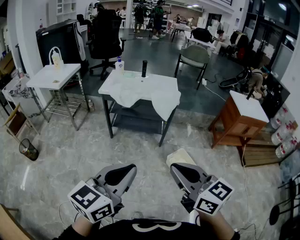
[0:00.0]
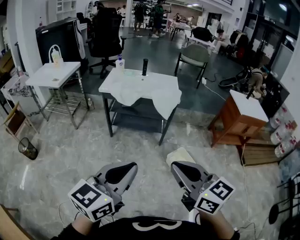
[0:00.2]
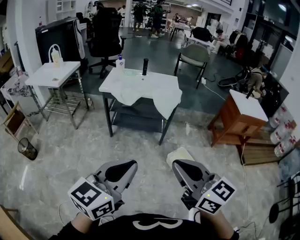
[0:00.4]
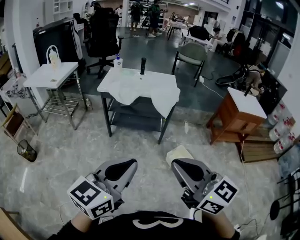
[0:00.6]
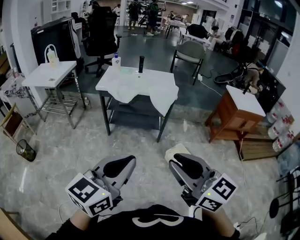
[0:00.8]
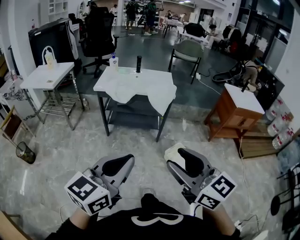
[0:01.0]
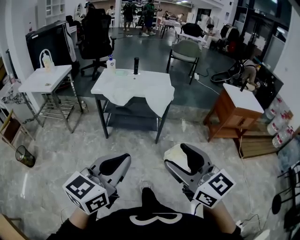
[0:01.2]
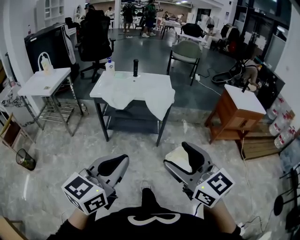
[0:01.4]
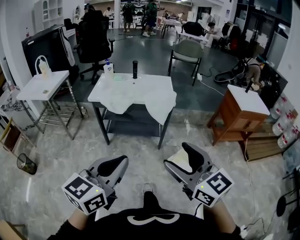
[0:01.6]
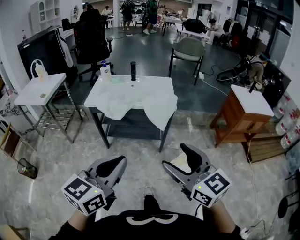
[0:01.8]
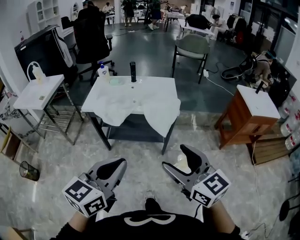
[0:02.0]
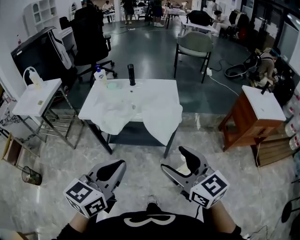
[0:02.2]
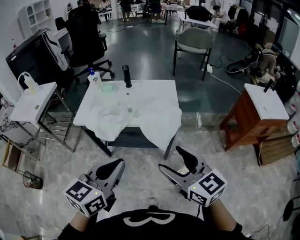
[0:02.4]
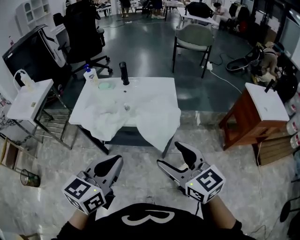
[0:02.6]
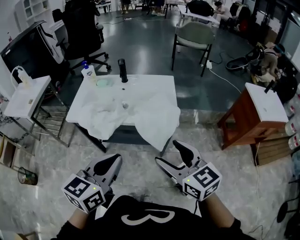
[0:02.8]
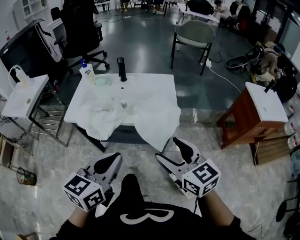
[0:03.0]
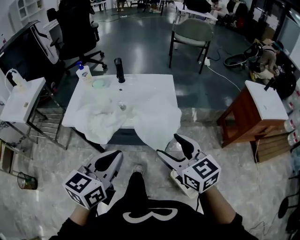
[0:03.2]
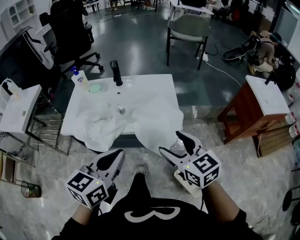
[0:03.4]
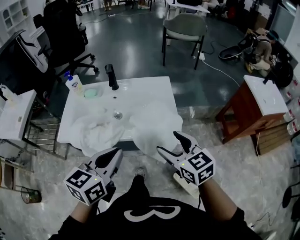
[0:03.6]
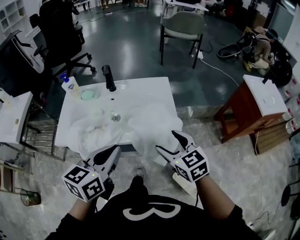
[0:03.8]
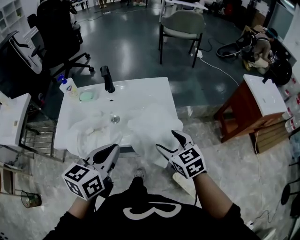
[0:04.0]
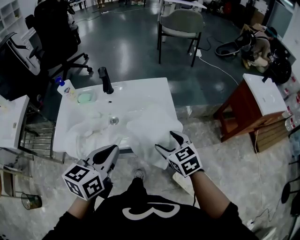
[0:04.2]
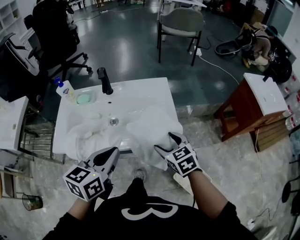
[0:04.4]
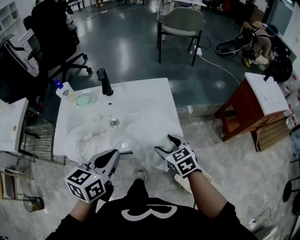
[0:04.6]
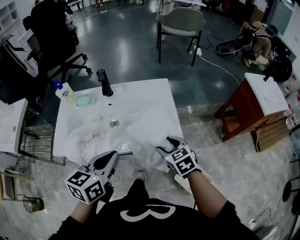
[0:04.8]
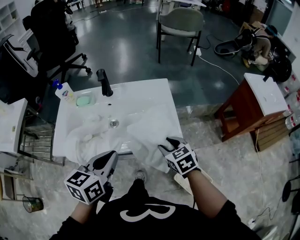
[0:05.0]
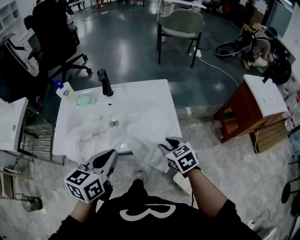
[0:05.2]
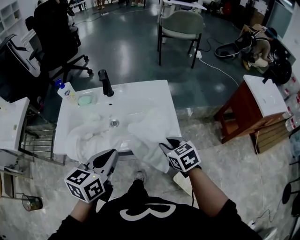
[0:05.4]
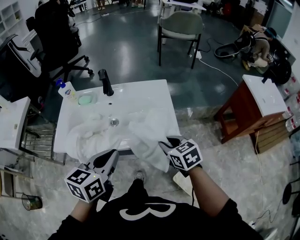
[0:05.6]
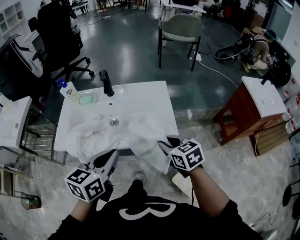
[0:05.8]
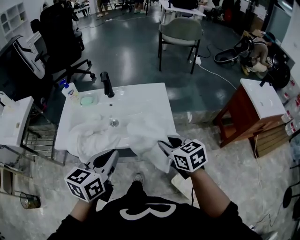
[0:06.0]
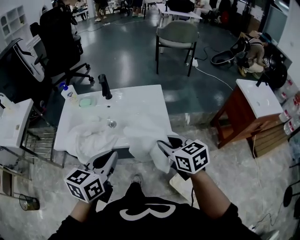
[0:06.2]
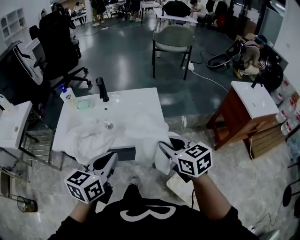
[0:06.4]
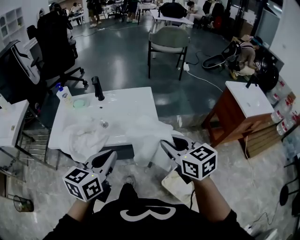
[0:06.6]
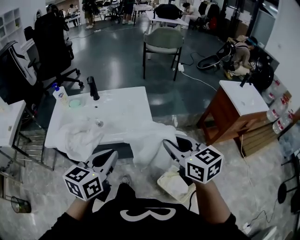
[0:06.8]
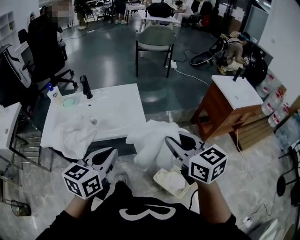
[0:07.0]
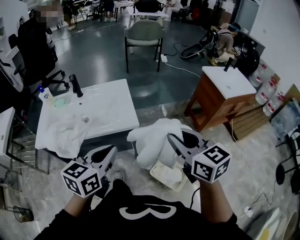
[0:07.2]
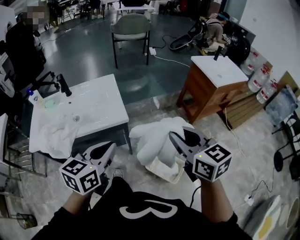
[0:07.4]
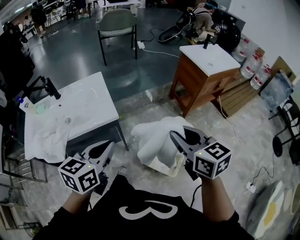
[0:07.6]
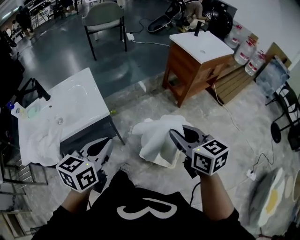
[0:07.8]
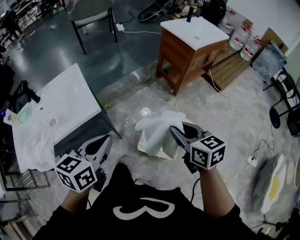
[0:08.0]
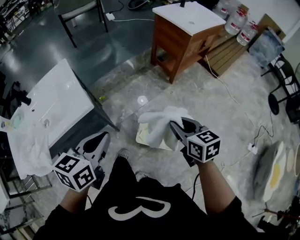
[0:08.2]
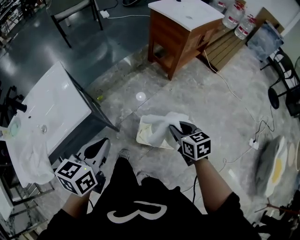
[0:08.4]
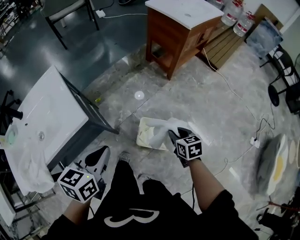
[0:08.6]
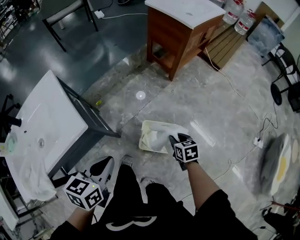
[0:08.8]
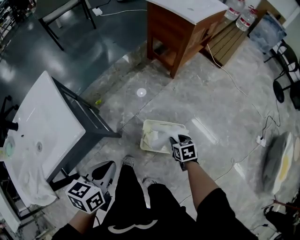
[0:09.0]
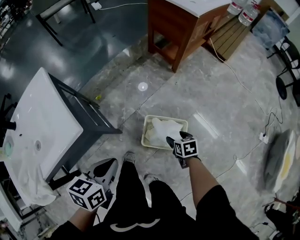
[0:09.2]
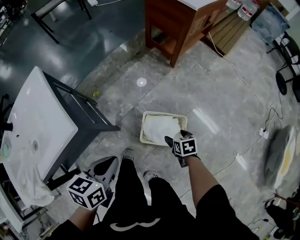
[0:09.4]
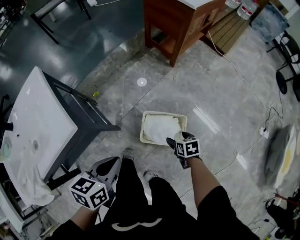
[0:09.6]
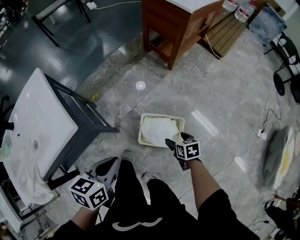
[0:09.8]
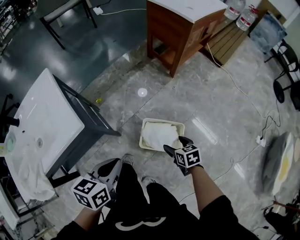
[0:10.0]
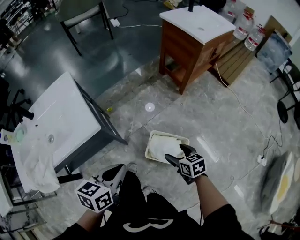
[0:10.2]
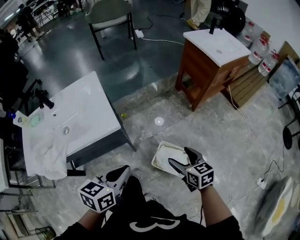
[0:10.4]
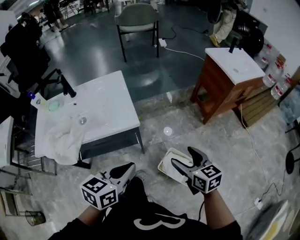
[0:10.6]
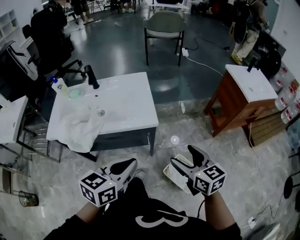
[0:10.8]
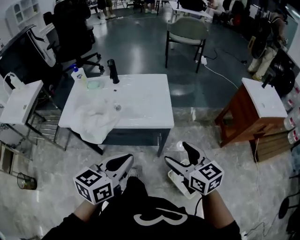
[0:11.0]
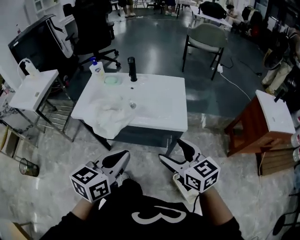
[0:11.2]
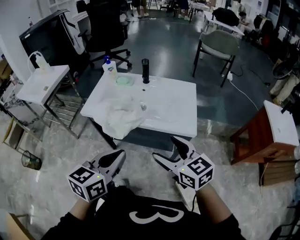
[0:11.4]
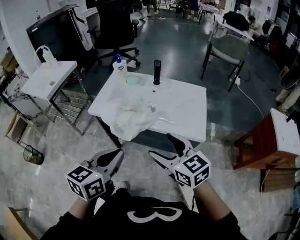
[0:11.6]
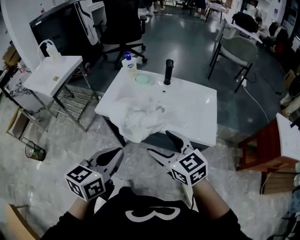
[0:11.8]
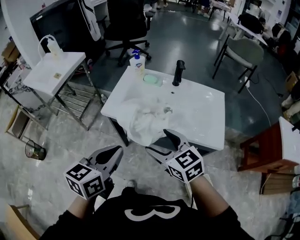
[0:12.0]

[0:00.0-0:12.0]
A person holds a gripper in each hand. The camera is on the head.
0:00.0 to 0:01.6: Both grippers move forward, approximately 10 cm. The right gripper opens its fingers.
0:01.6 to 0:03.0: Both grippers move forward, approximately 40 cm.
0:03.0 to 0:04.4: The right gripper shifts about 25 cm forward and downward, and changes its angle by approximately 30 degrees; the left gripper goes some 20 cm forward.
0:04.4 to 0:06.0: The right gripper moves upward, some 5 cm, and closes its fingers.
0:06.0 to 0:07.6: The left gripper changes place by roughly 25 cm, and changes its angle by approximately 20 degrees. Meanwhile the right gripper moves approximately 35 cm, and swivels roughly 30 degrees.
0:07.6 to 0:09.0: The right gripper is displaced downward by about 50 cm, and points its fingers roughly 40 degrees further downward. The left gripper shifts some 25 cm downward and forward, and rotates roughly 30 degrees.
0:09.0 to 0:10.4: The left gripper shifts roughly 10 cm upward and backward. Meanwhile the right gripper heads upward, covering approximately 25 cm, changes its angle by roughly 30 degrees, and opens its fingers.
0:10.4 to 0:12.0: The two grippers travel together, about 50 cm. The right gripper rotates some 60 degrees. The left gripper changes its angle by roughly 50 degrees.

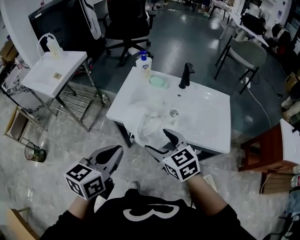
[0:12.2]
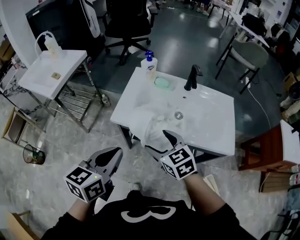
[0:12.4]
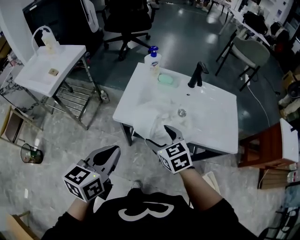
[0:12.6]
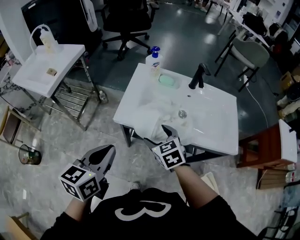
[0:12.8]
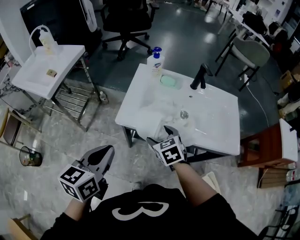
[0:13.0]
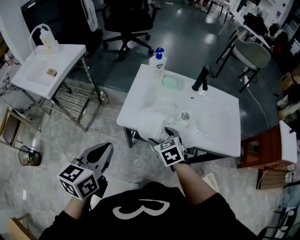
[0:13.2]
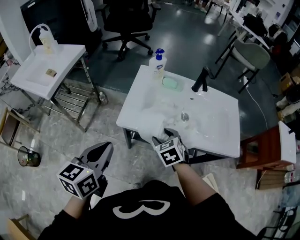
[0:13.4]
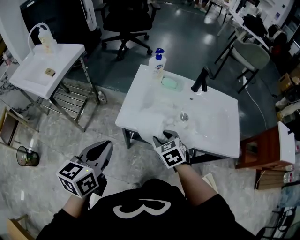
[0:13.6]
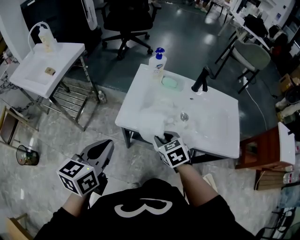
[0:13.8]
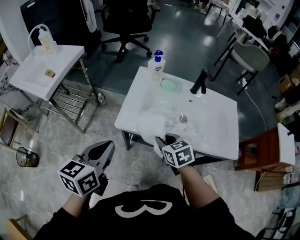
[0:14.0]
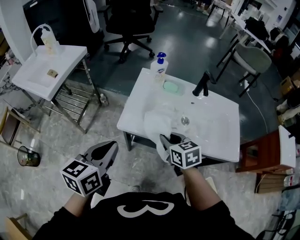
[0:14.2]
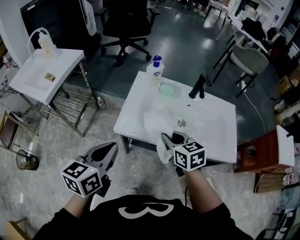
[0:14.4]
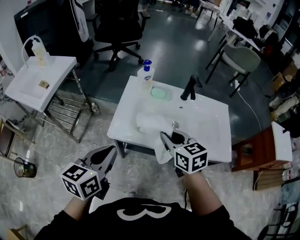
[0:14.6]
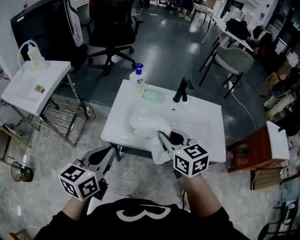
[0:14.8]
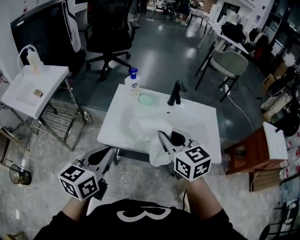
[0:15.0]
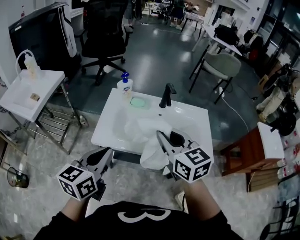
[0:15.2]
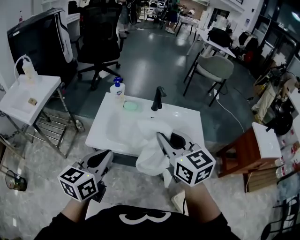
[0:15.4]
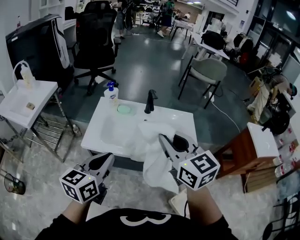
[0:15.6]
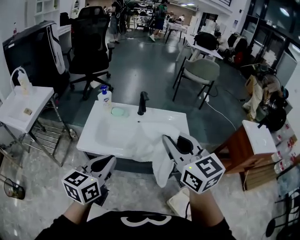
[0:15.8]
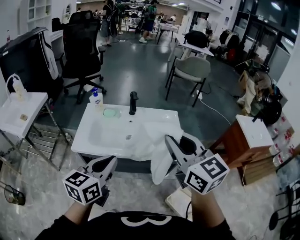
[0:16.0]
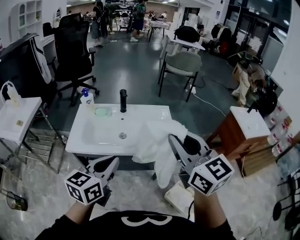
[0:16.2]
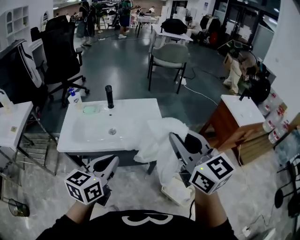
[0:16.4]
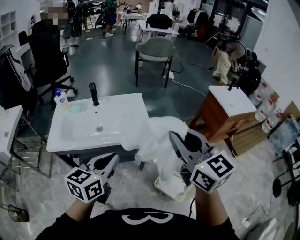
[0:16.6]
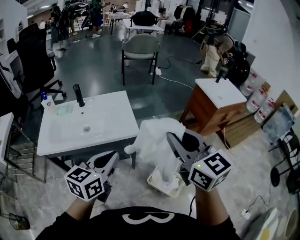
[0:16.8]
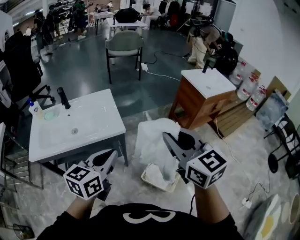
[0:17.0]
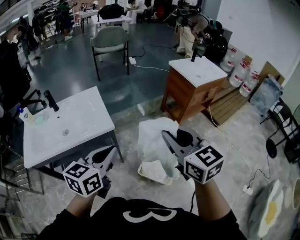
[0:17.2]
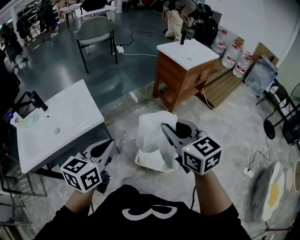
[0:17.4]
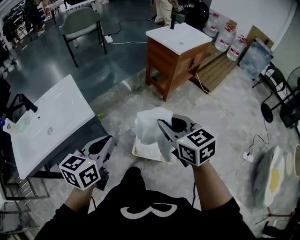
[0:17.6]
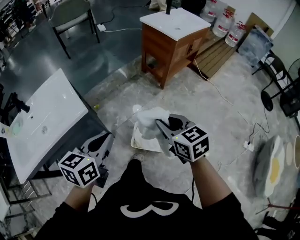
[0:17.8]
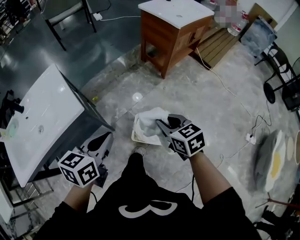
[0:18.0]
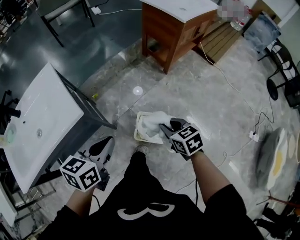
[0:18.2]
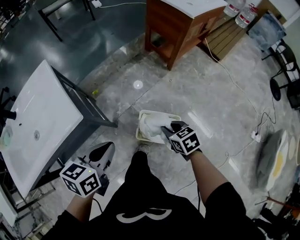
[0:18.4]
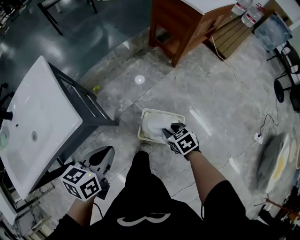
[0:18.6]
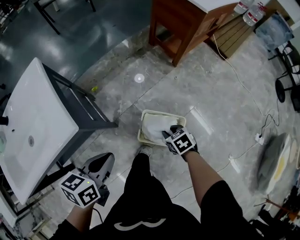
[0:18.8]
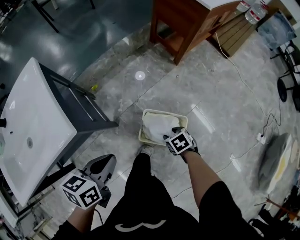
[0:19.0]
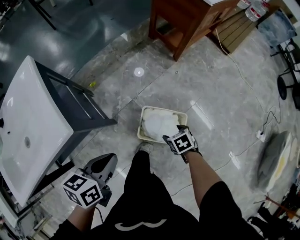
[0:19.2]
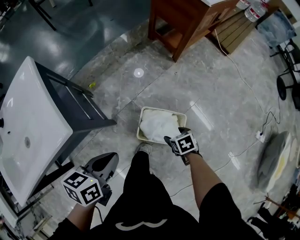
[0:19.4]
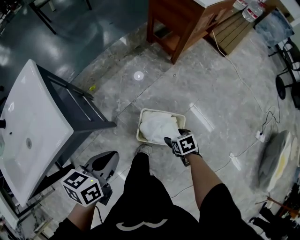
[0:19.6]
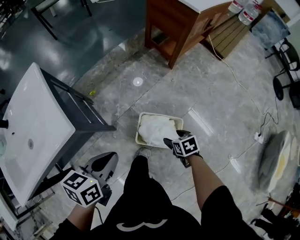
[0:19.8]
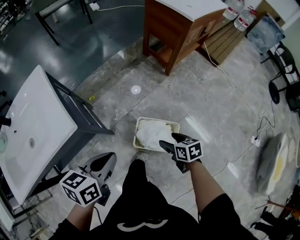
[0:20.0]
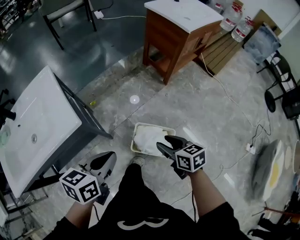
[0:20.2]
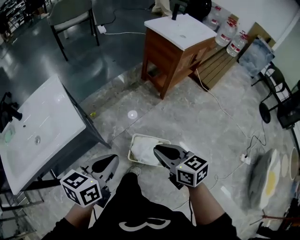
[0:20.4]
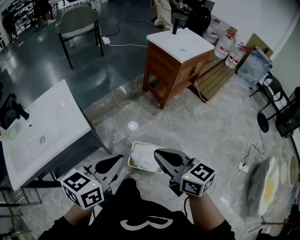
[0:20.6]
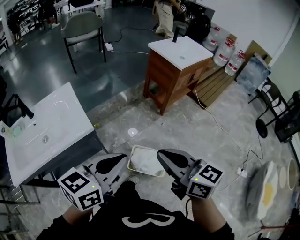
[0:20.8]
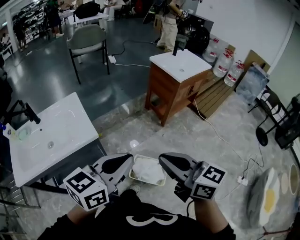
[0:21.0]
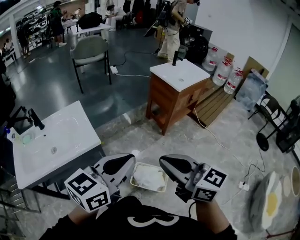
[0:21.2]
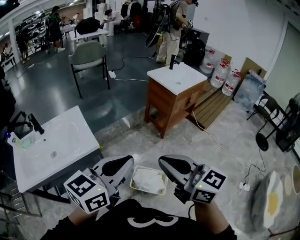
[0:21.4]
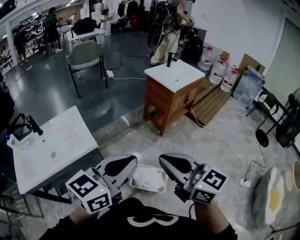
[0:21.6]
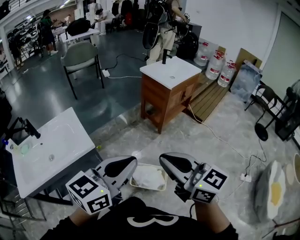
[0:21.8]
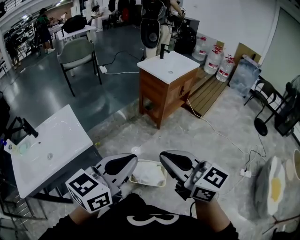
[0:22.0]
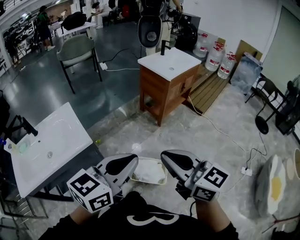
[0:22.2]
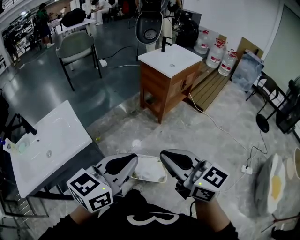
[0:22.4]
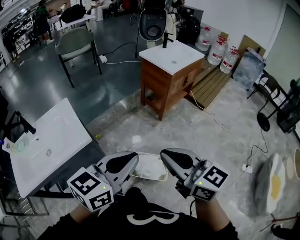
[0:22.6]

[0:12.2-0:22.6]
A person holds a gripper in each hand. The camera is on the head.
0:12.2 to 0:13.6: The right gripper goes approximately 20 cm downward, forward and to the left, rotates some 30 degrees, and closes its fingers. Meanwhile the left gripper goes about 15 cm to the left and forward.
0:13.6 to 0:15.2: The left gripper moves to the right and upward, roughly 15 cm. Meanwhile the right gripper travels upward and to the right by approximately 25 cm, and tilts its fingers roughly 30 degrees upward.
0:15.2 to 0:16.6: The right gripper travels to the right and backward by about 40 cm, and swivels some 20 degrees. The left gripper goes some 35 cm to the right, and changes its angle by approximately 20 degrees.
0:16.6 to 0:18.2: The left gripper shifts by about 35 cm, and rotates some 40 degrees; the right gripper travels downward by about 40 cm, and tilts its fingers approximately 40 degrees downward.
0:18.2 to 0:19.6: The left gripper heads downward, covering about 10 cm. The right gripper goes about 25 cm downward, turns by about 30 degrees, and opens.
0:19.6 to 0:21.2: The left gripper goes roughly 40 cm upward, and points its fingers about 30 degrees further upward; the right gripper goes roughly 60 cm upward, points its fingers roughly 70 degrees further upward, and closes its fingers.
0:21.2 to 0:22.6: The right gripper ends up about 5 cm from where it was. The left gripper moves to the right, about 5 cm.

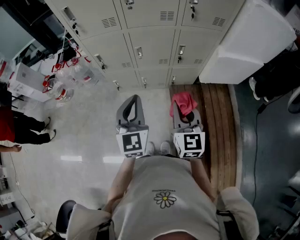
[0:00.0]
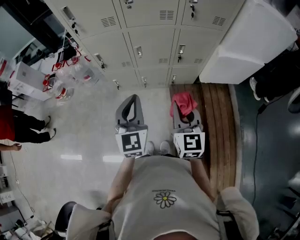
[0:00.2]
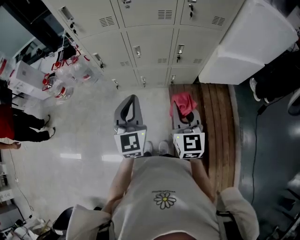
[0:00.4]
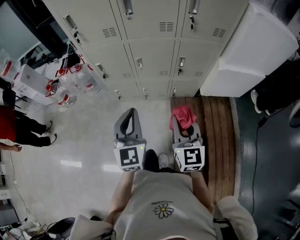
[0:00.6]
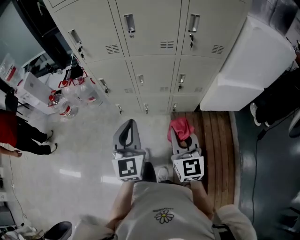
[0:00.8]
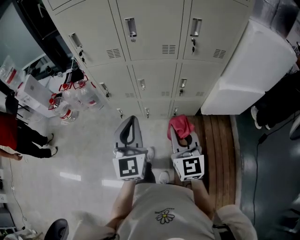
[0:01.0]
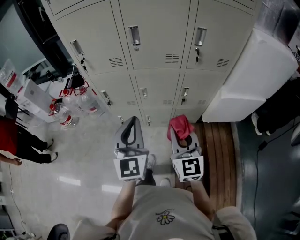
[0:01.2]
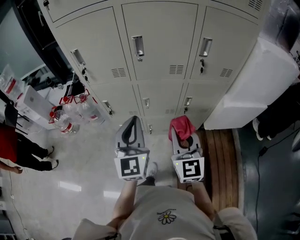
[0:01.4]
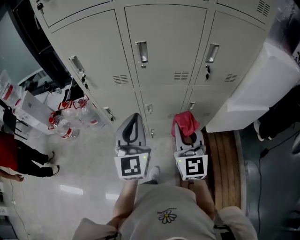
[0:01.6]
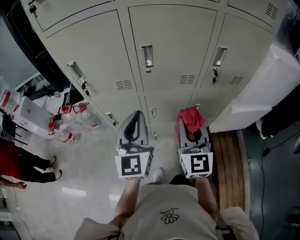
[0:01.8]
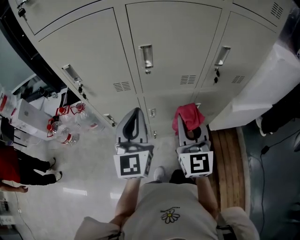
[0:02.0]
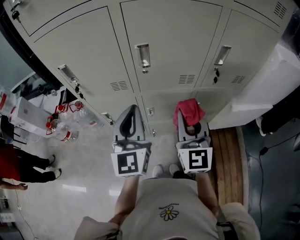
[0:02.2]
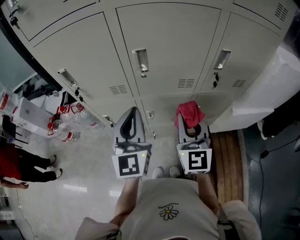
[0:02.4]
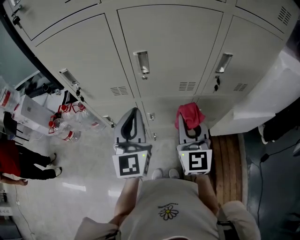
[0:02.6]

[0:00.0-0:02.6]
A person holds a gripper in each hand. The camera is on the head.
0:00.0 to 0:01.2: The grippers both shift forward and upward by some 10 cm.
0:01.2 to 0:02.6: Both grippers travel together forward, approximately 20 cm.
